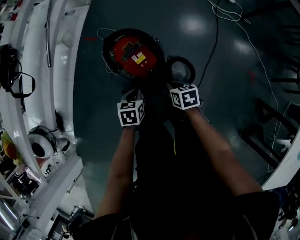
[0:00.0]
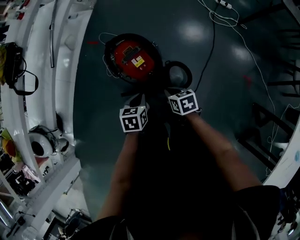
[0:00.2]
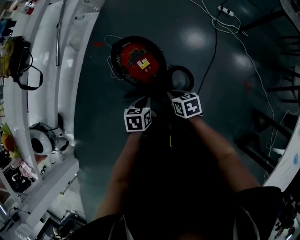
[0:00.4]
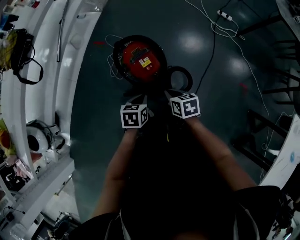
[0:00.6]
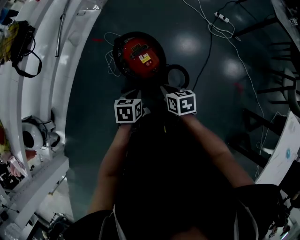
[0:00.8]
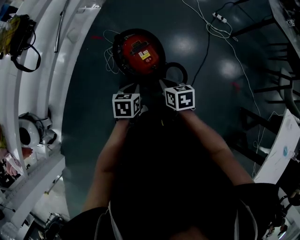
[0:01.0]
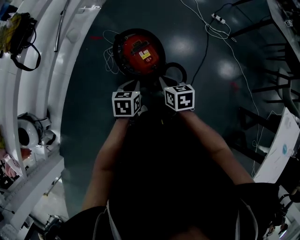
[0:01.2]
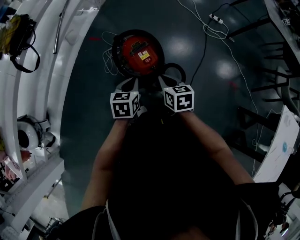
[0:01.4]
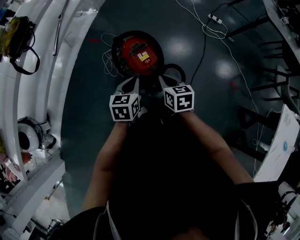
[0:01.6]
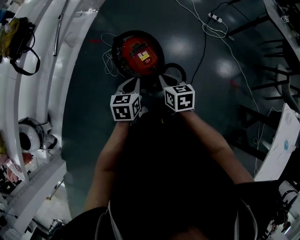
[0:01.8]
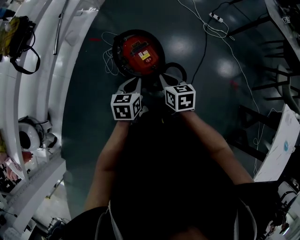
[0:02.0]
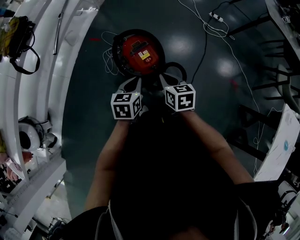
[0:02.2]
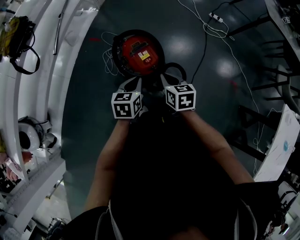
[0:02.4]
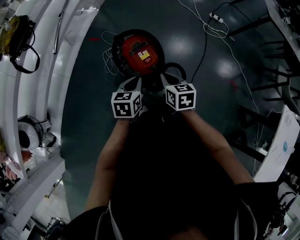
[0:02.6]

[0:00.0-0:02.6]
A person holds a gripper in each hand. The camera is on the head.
0:00.0 to 0:01.2: The left gripper moves upward, approximately 15 cm. Meanwhile the right gripper is displaced upward and to the left by some 20 cm.
0:01.2 to 0:02.6: The grippers move only a little.

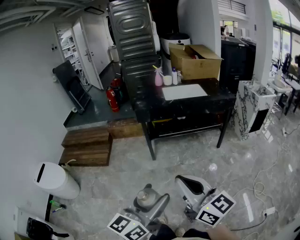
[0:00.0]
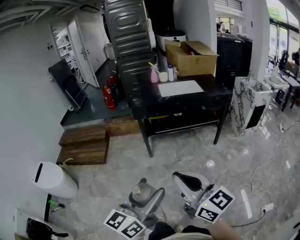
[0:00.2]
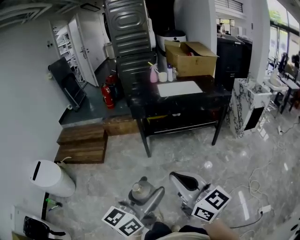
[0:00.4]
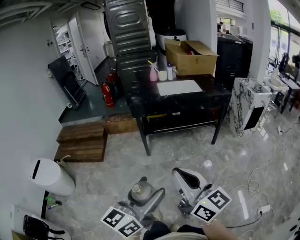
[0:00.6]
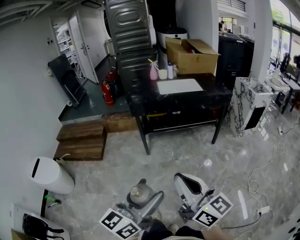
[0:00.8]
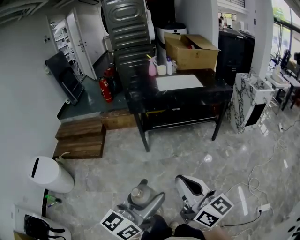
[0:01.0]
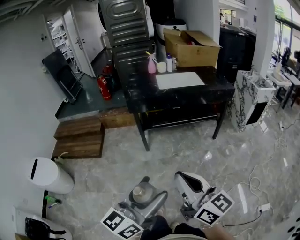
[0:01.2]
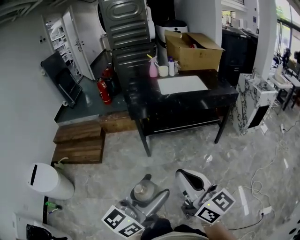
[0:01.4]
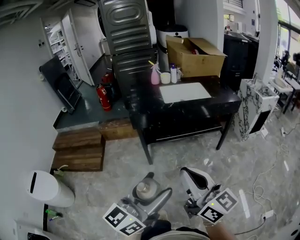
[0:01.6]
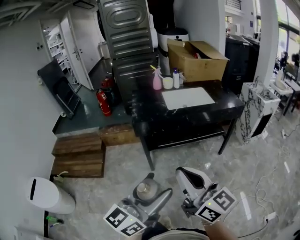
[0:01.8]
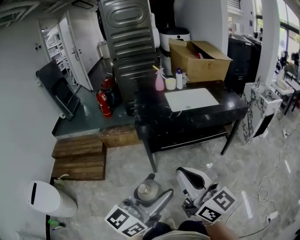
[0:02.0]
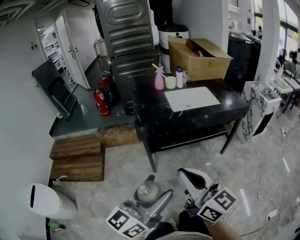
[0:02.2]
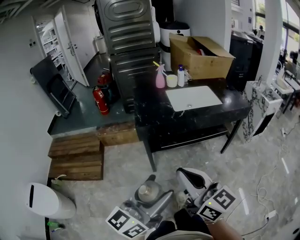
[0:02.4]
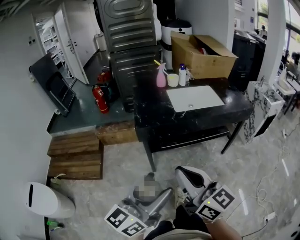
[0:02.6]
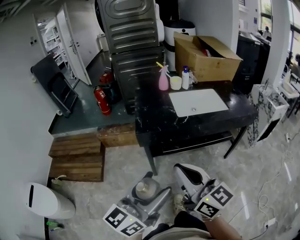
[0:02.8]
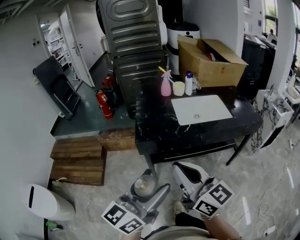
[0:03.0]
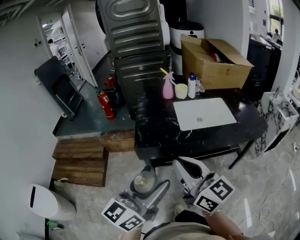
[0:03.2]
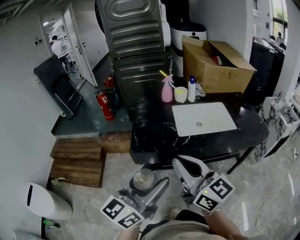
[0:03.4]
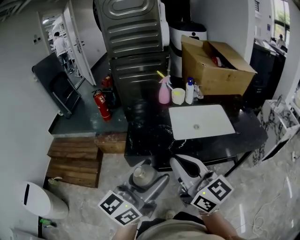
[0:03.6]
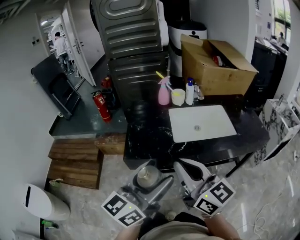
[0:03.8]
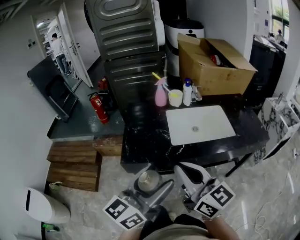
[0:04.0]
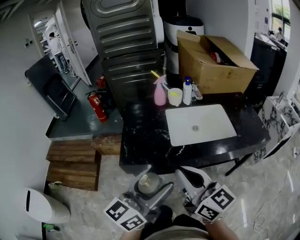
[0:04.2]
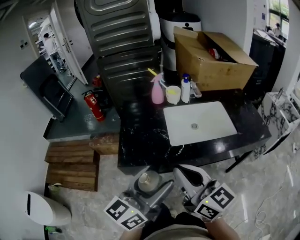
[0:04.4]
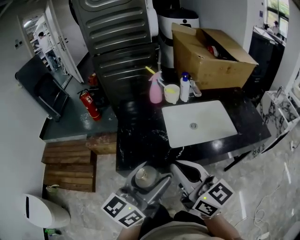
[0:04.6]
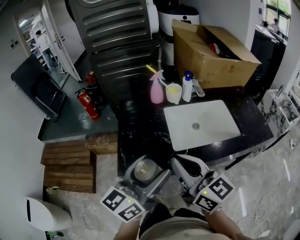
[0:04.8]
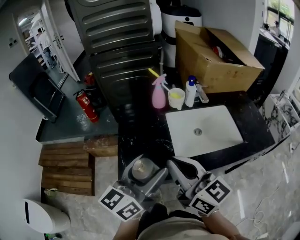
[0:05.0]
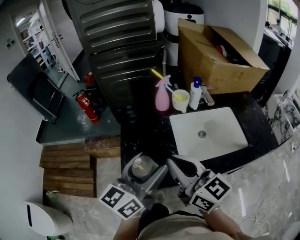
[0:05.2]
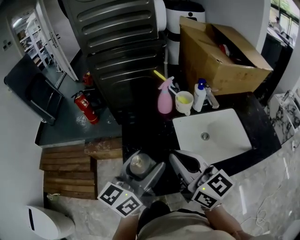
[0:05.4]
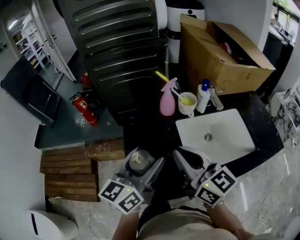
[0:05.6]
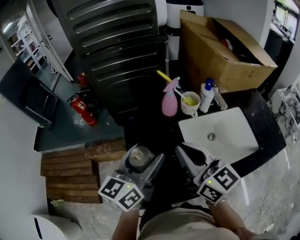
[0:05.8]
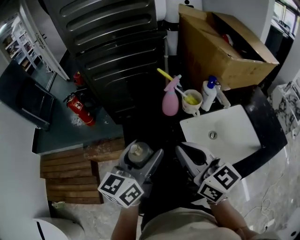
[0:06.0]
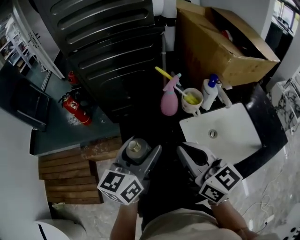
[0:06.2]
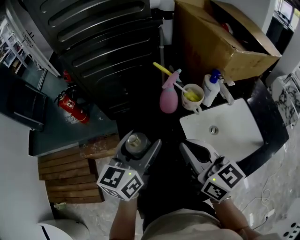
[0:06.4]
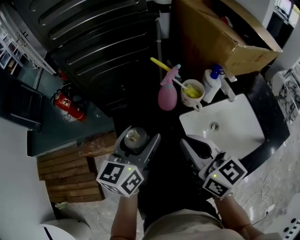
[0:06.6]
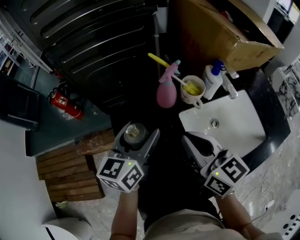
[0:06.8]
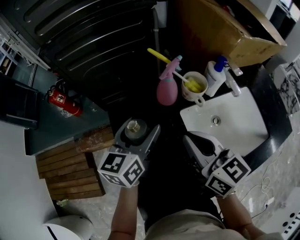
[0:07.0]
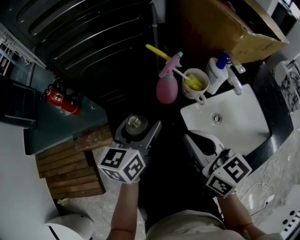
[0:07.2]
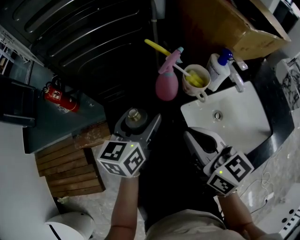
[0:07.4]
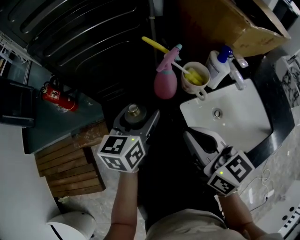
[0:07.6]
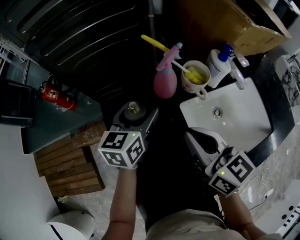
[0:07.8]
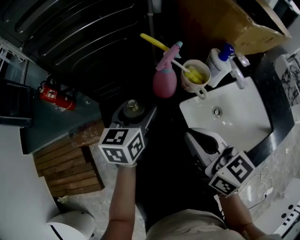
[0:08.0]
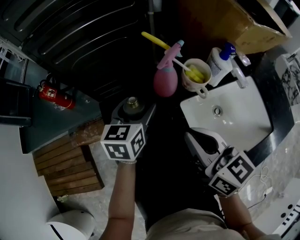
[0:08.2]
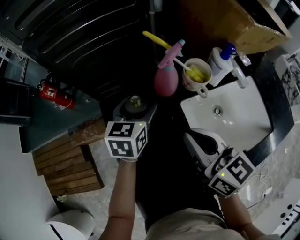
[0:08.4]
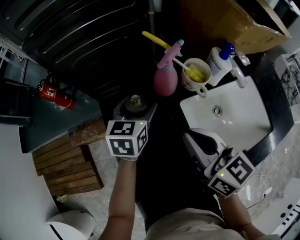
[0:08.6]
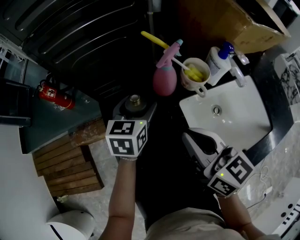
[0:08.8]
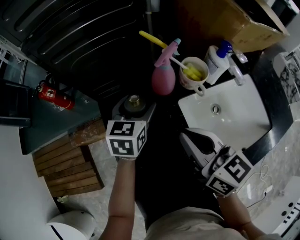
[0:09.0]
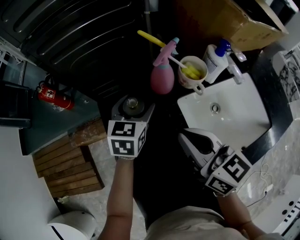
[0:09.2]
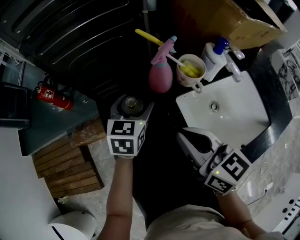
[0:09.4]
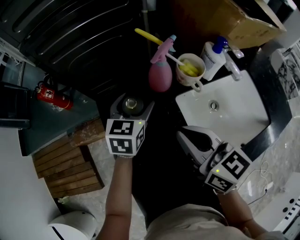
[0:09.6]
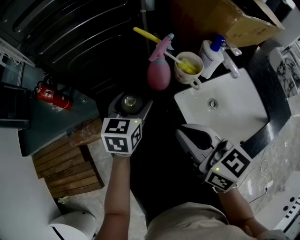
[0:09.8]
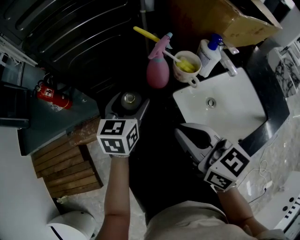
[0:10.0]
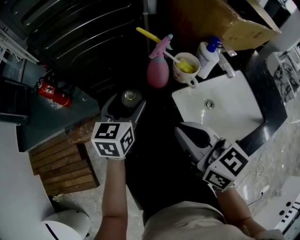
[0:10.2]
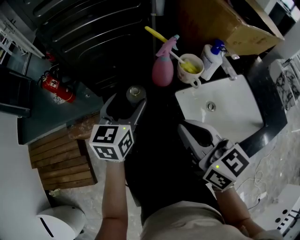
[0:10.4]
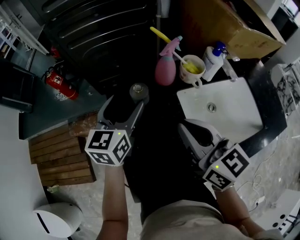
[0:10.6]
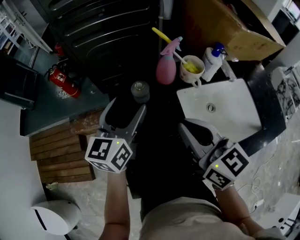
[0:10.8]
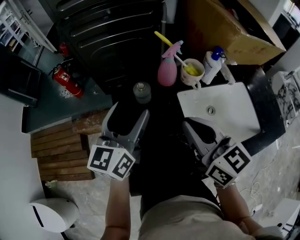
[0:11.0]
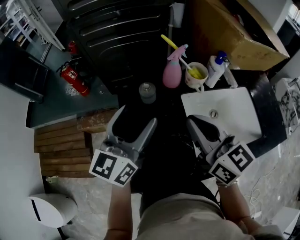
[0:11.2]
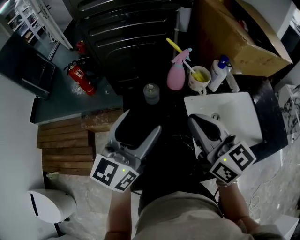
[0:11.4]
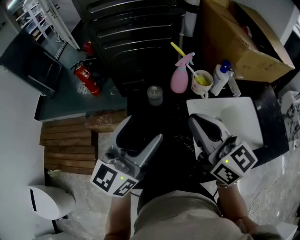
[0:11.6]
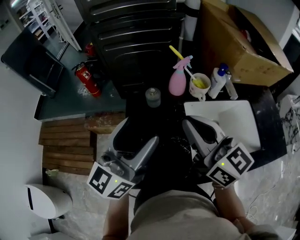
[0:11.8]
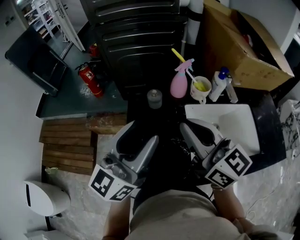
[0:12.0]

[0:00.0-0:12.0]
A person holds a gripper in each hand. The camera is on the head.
0:00.0 to 0:01.6: The grippers both shift forward by some 20 cm.
0:01.6 to 0:03.0: The two grippers go some 30 cm forward.
0:03.0 to 0:04.4: The two grippers go roughly 25 cm forward and to the right.
0:04.4 to 0:06.0: Both grippers travel together forward, roughly 35 cm.
0:06.0 to 0:07.6: The right gripper is displaced forward and downward by some 15 cm; the left gripper shifts roughly 20 cm forward and downward.
0:07.6 to 0:09.0: The grippers make only small movements.
0:09.0 to 0:10.4: The left gripper is displaced upward and backward by about 10 cm, while the right gripper moves roughly 5 cm.
0:10.4 to 0:12.0: The left gripper shifts some 30 cm backward and upward, and angles its fingers upward, by some 30 degrees; the right gripper moves upward and backward, about 15 cm, and turns by about 20 degrees.

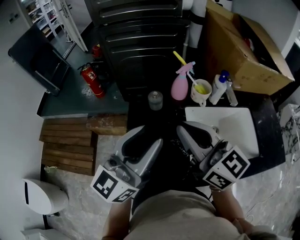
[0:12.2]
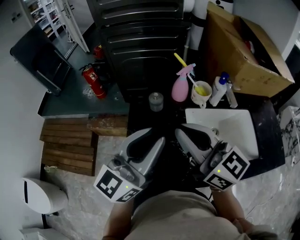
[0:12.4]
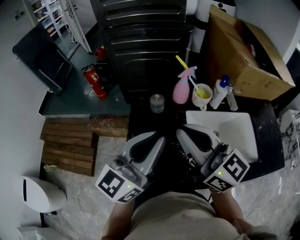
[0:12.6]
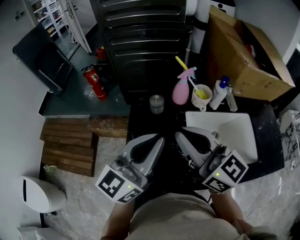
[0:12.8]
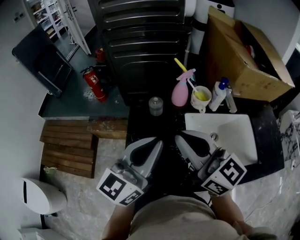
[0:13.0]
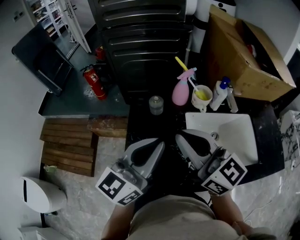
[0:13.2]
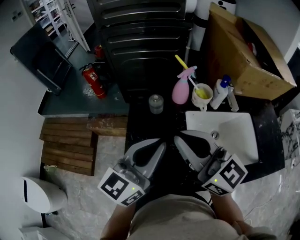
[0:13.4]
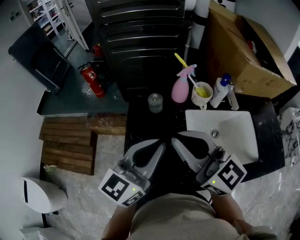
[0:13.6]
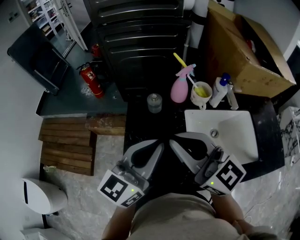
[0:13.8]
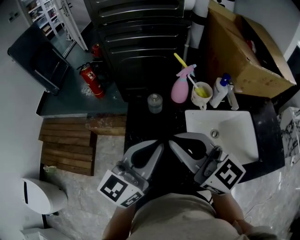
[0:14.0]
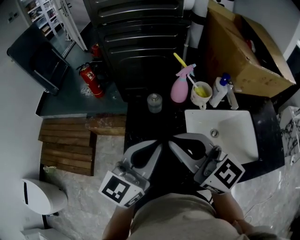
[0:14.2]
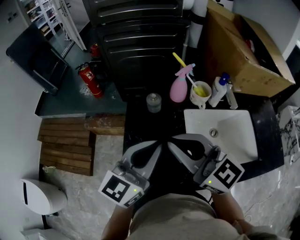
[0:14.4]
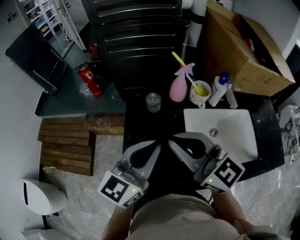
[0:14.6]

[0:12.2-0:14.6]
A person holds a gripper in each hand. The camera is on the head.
0:12.2 to 0:13.4: The left gripper closes up.
0:13.4 to 0:14.6: The grippers move only a little.

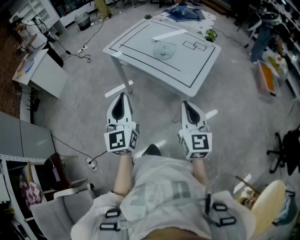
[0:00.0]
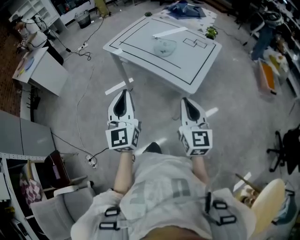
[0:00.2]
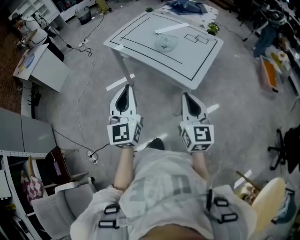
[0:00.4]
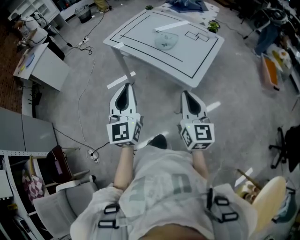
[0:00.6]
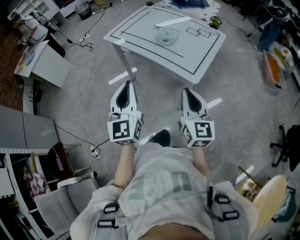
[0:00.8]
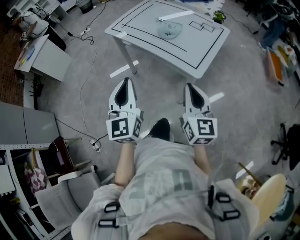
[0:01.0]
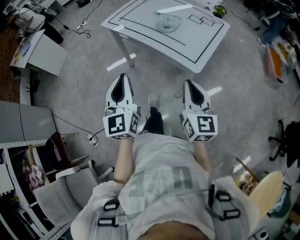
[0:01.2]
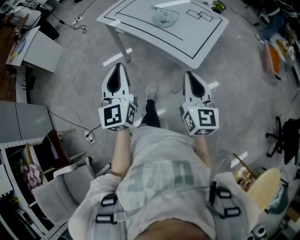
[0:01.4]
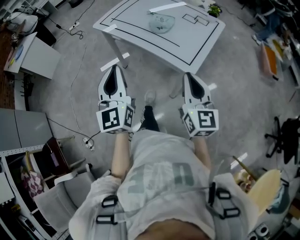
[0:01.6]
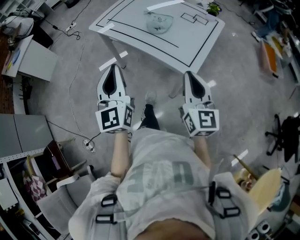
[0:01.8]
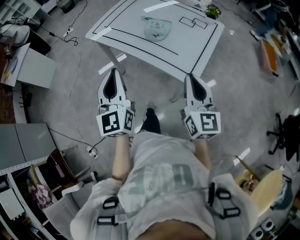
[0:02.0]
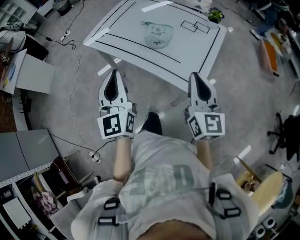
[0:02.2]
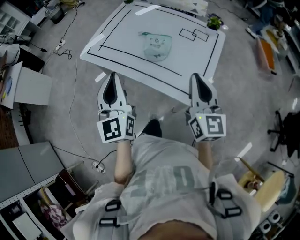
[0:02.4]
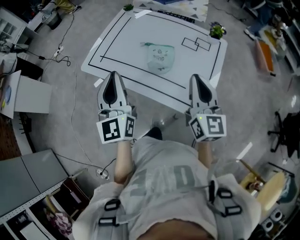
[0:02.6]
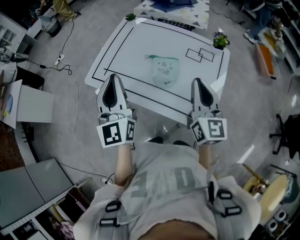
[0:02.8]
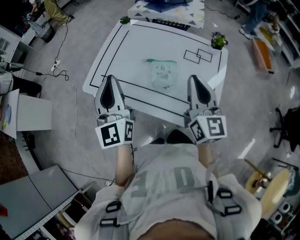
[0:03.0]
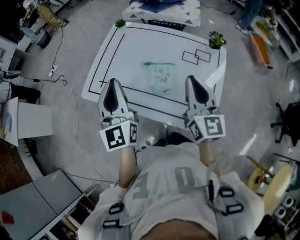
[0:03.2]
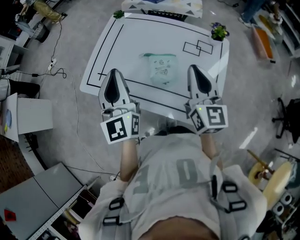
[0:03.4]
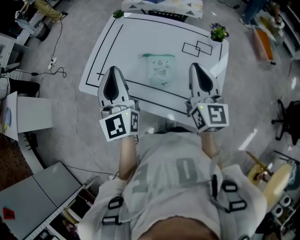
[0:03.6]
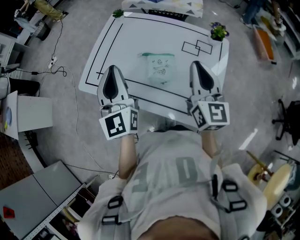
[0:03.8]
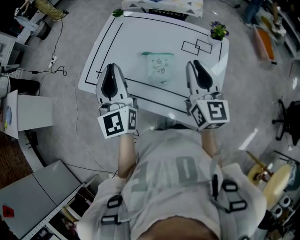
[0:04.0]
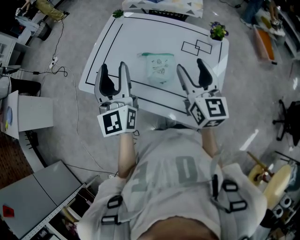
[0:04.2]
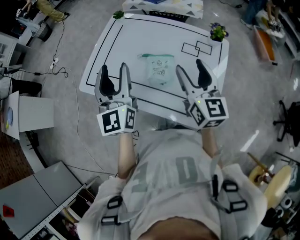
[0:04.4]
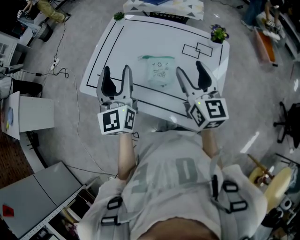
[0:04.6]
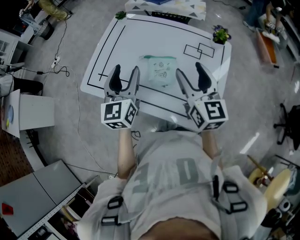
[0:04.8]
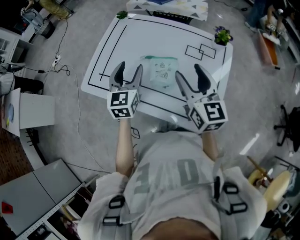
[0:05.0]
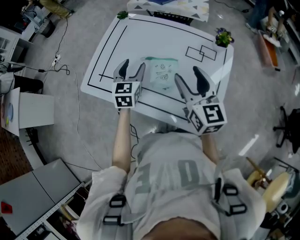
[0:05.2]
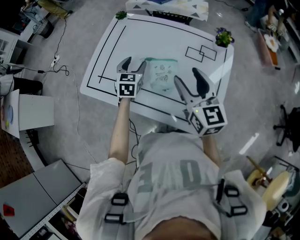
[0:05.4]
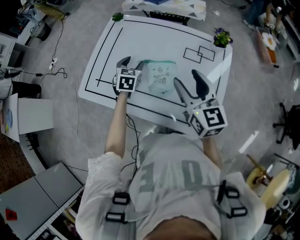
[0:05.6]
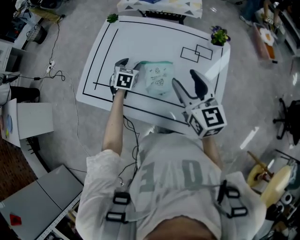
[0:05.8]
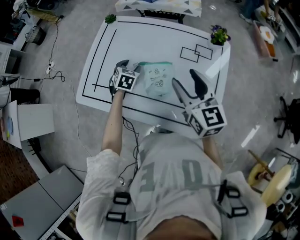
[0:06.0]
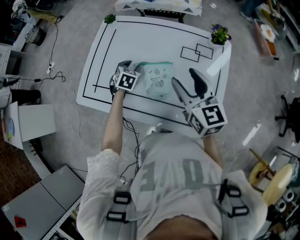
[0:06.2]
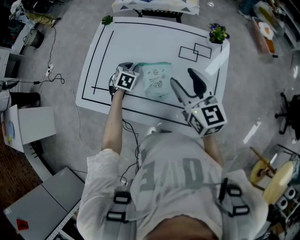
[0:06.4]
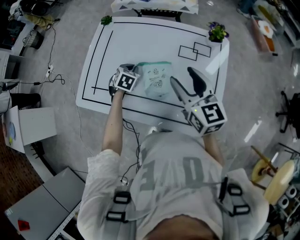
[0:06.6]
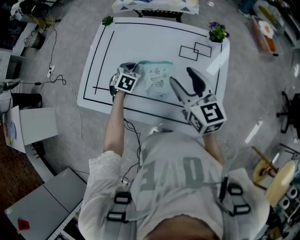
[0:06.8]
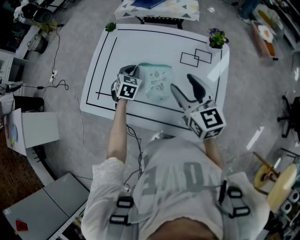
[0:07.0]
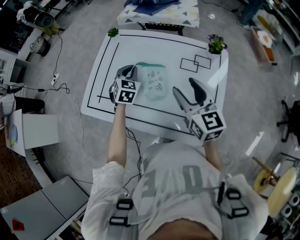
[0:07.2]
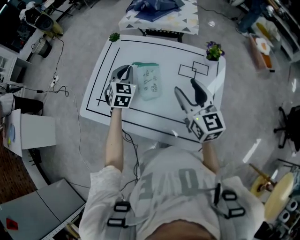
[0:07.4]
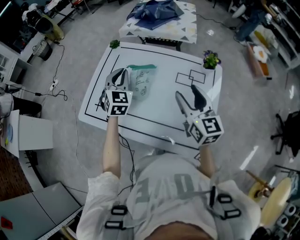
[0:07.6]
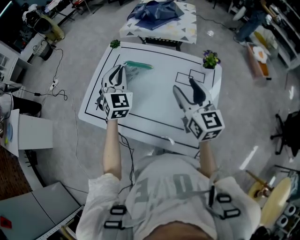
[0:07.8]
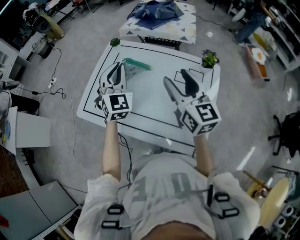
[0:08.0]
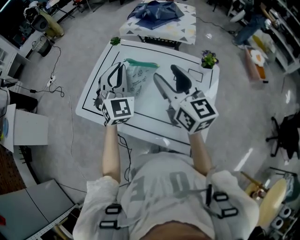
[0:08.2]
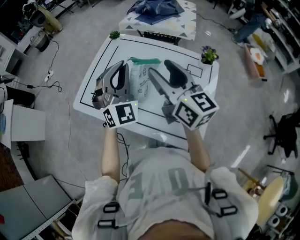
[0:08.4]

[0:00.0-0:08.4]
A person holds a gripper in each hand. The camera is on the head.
0:00.0 to 0:01.4: The grippers move only a little.
0:01.4 to 0:02.8: Both grippers move forward, approximately 35 cm.
0:02.8 to 0:04.2: The two grippers go approximately 10 cm forward. The right gripper opens up, while the left gripper opens up.
0:04.2 to 0:05.6: The left gripper is displaced downward and forward by roughly 30 cm, and tips its fingers downward by some 50 degrees.
0:05.6 to 0:07.0: The left gripper closes its fingers.
0:07.0 to 0:08.4: The right gripper moves upward and to the left, approximately 15 cm, and changes its angle by approximately 20 degrees, while the left gripper travels upward by roughly 30 cm, and tips its fingers upward by about 50 degrees.
